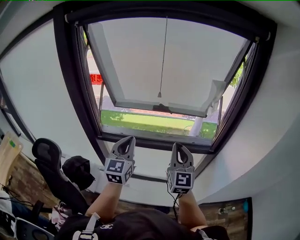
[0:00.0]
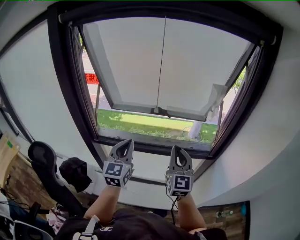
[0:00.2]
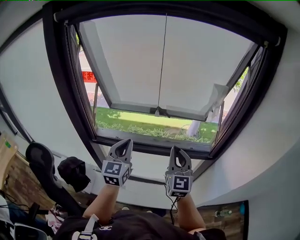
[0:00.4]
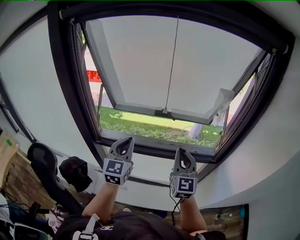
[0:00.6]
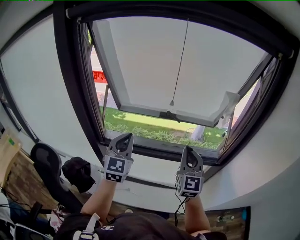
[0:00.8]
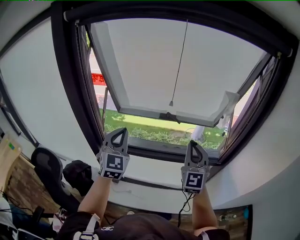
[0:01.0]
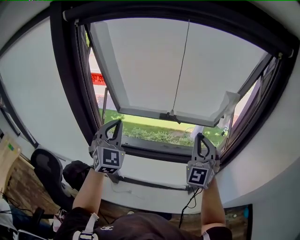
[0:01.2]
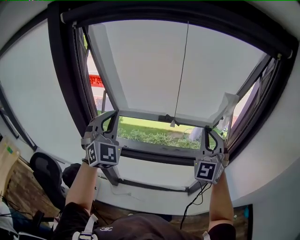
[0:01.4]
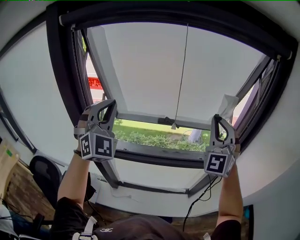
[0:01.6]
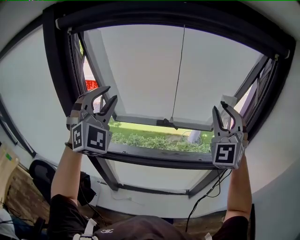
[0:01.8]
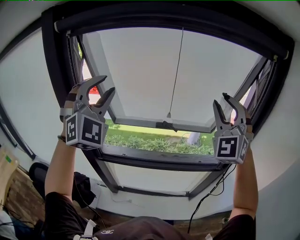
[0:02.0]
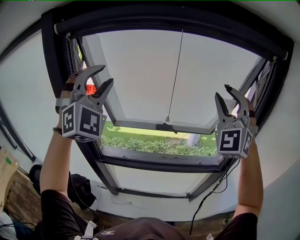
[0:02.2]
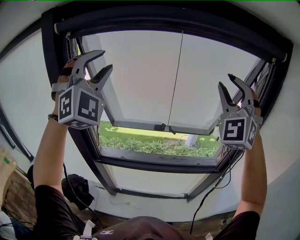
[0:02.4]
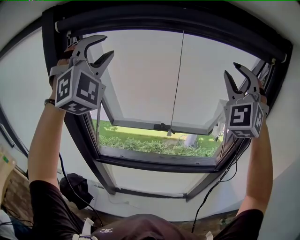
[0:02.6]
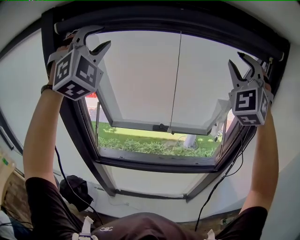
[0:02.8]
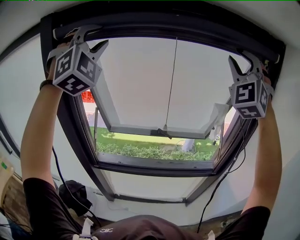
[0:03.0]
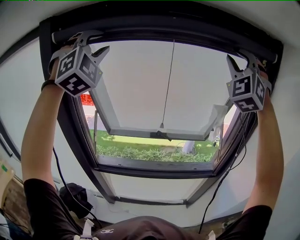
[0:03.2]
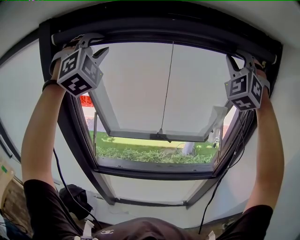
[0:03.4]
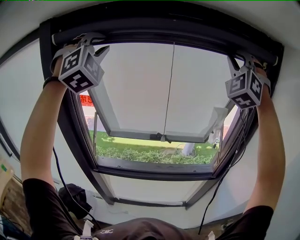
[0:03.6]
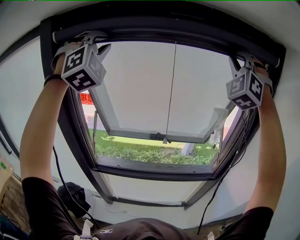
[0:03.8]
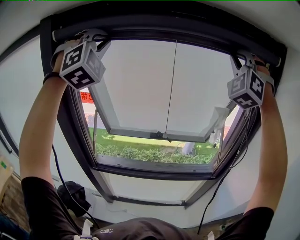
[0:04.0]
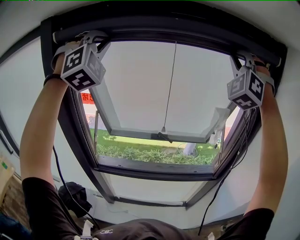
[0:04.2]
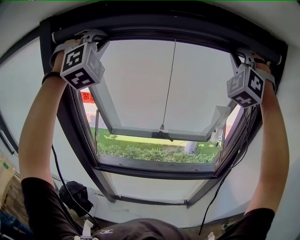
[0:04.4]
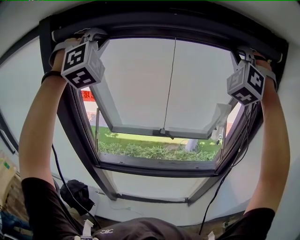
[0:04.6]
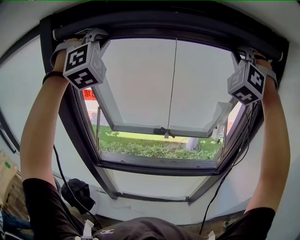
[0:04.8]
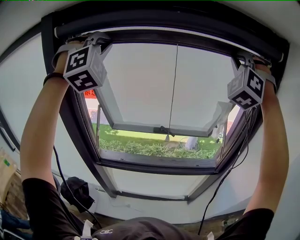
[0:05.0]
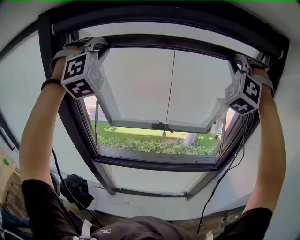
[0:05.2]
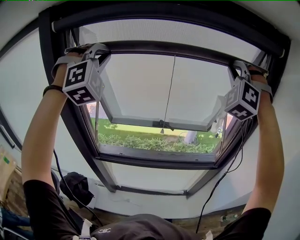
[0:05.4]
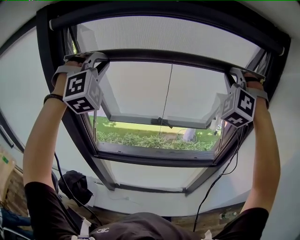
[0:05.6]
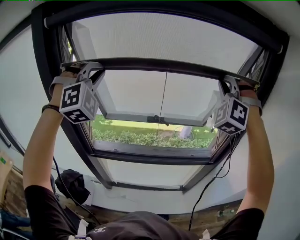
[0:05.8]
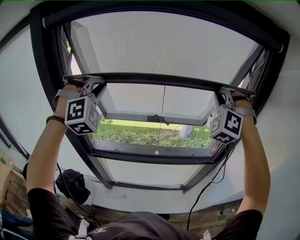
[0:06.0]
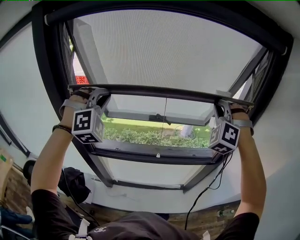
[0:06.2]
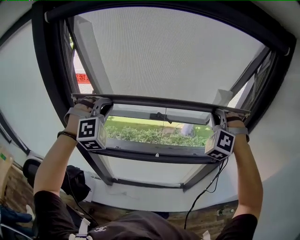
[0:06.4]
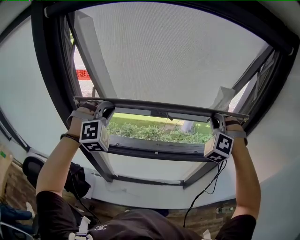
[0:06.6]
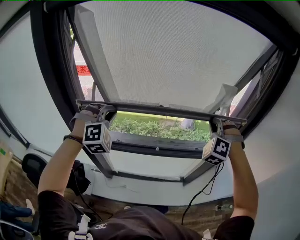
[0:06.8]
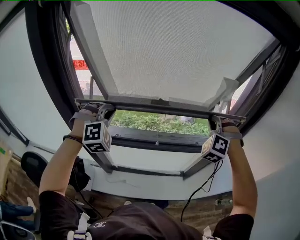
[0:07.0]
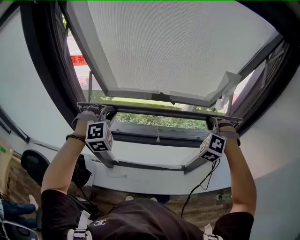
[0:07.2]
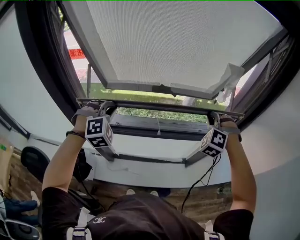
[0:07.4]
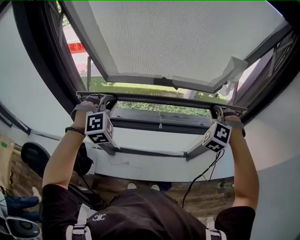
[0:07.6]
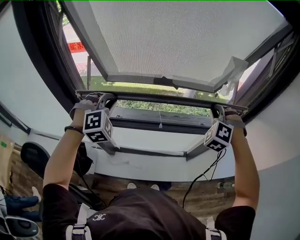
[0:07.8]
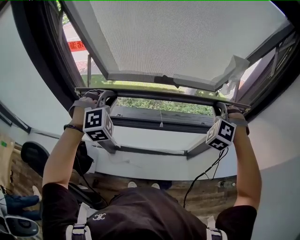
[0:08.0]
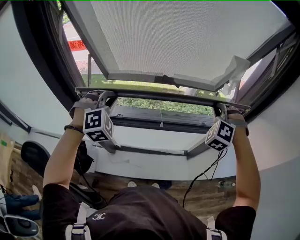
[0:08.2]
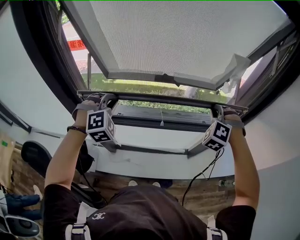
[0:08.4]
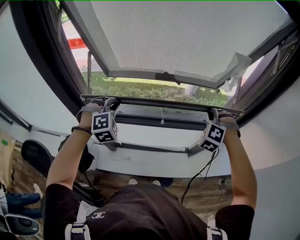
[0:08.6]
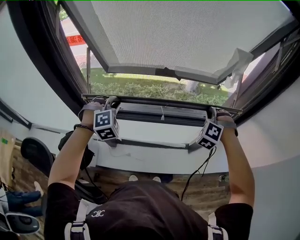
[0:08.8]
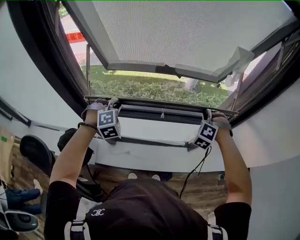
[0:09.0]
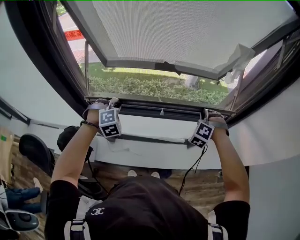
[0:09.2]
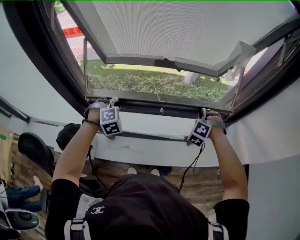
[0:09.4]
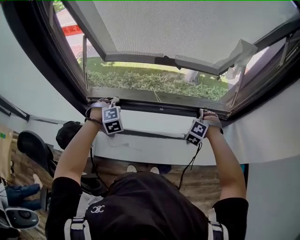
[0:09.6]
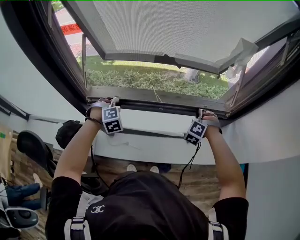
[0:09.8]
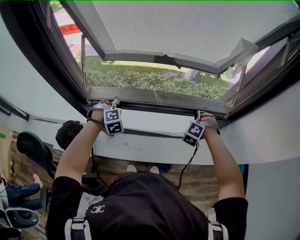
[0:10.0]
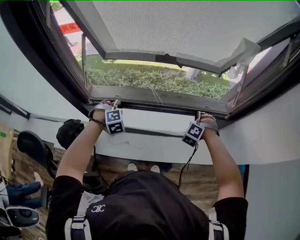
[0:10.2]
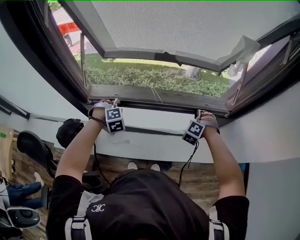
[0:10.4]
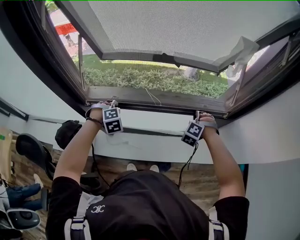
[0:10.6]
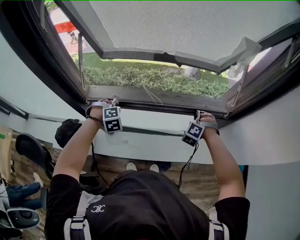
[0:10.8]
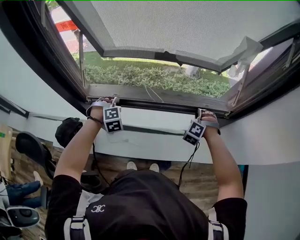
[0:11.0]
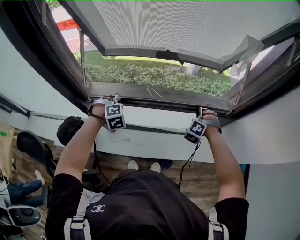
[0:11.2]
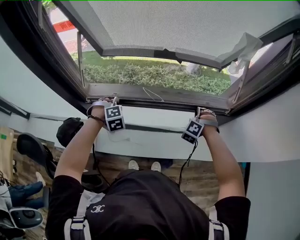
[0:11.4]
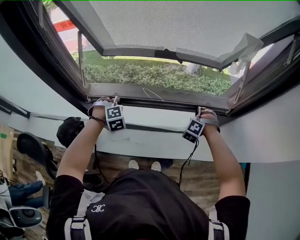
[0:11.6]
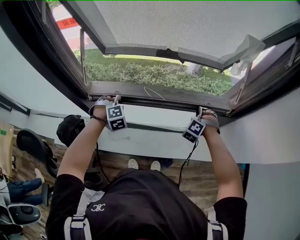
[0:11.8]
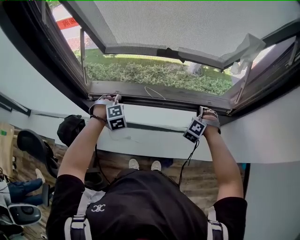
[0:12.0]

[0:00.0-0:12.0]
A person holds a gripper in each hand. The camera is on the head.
0:00.0 to 0:01.6: The right gripper heads upward and forward, covering roughly 20 cm, and twists about 50 degrees counterclockwise, seen from behind; the left gripper travels upward, forward and to the left by roughly 25 cm, and rotates around the line of its fingers by about 60 degrees, clockwise from behind.
0:01.6 to 0:03.0: Both grippers move upward, roughly 25 cm. The left gripper rotates about 20 degrees, and opens up. Meanwhile the right gripper rotates about 20 degrees, and opens up.
0:03.0 to 0:04.4: The right gripper closes, while the left gripper closes.
0:04.4 to 0:06.0: The grippers both shift downward by roughly 20 cm. The right gripper changes its angle by roughly 20 degrees.
0:06.0 to 0:07.6: Both grippers move downward, about 25 cm. The left gripper changes its angle by about 20 degrees, while the right gripper changes its angle by roughly 30 degrees.
0:07.6 to 0:09.0: The grippers both shift downward by roughly 10 cm.
0:09.0 to 0:10.4: The grippers both shift downward by some 10 cm.
0:10.4 to 0:12.0: The grippers make only small movements.

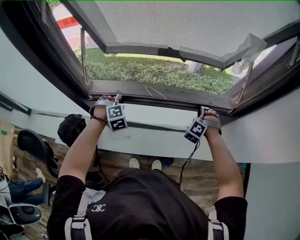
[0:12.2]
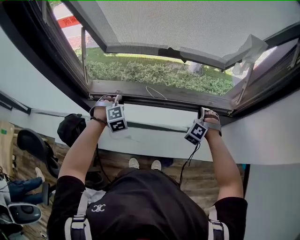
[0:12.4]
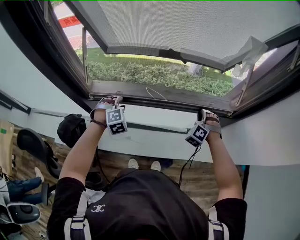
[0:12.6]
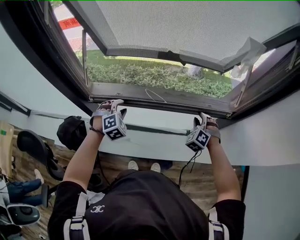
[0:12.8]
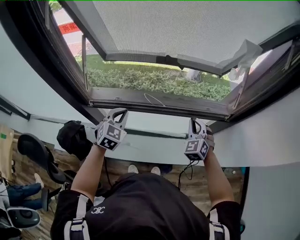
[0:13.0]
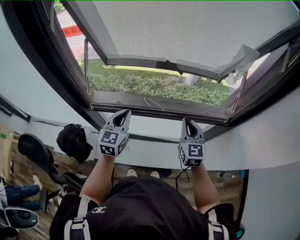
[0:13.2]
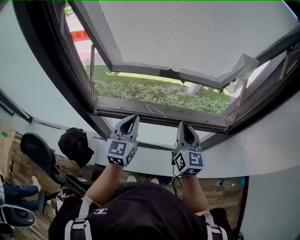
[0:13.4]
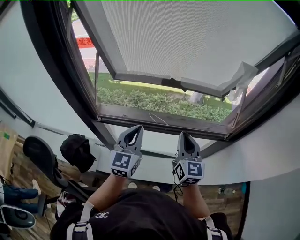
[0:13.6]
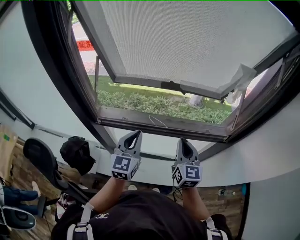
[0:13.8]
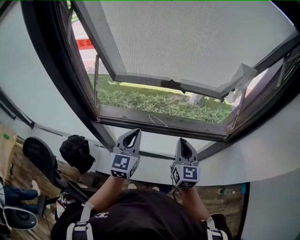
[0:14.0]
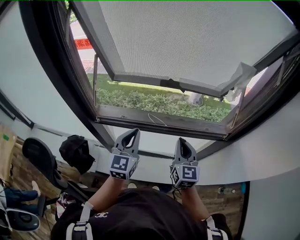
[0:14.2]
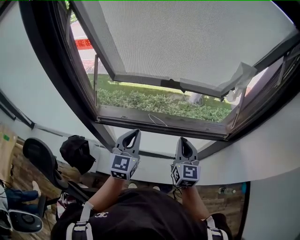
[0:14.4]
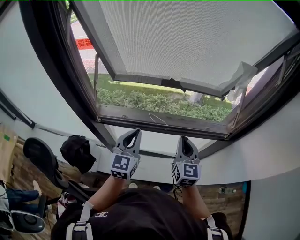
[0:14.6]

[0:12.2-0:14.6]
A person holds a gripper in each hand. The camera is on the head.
0:12.2 to 0:13.4: The right gripper goes roughly 25 cm upward, to the left and backward, rolls clockwise, seen from behind, by about 90 degrees, and opens, then closes again. Meanwhile the left gripper moves upward and to the right, approximately 20 cm, angles its fingers upward, by approximately 50 degrees, and opens, then closes again.
0:13.4 to 0:14.6: The grippers move only a little.

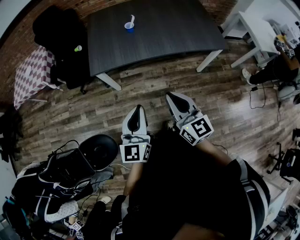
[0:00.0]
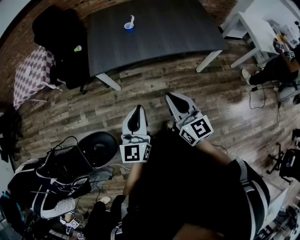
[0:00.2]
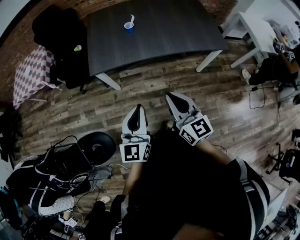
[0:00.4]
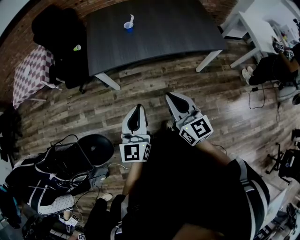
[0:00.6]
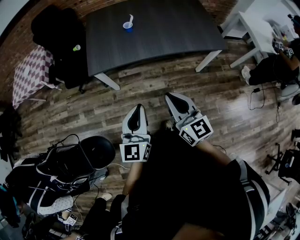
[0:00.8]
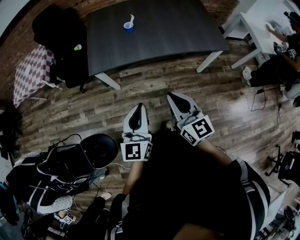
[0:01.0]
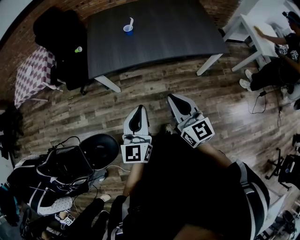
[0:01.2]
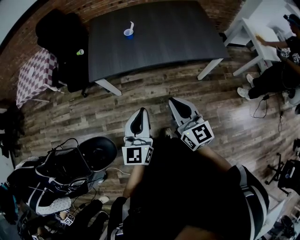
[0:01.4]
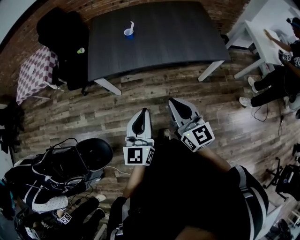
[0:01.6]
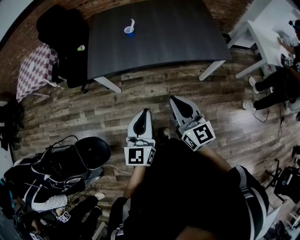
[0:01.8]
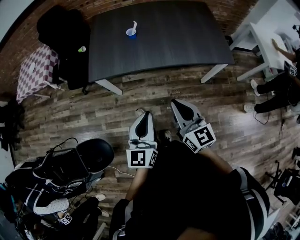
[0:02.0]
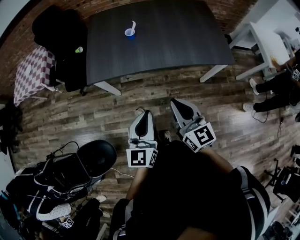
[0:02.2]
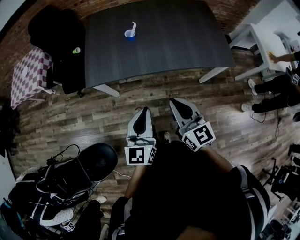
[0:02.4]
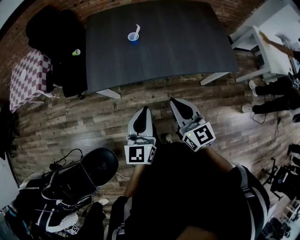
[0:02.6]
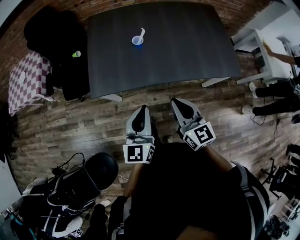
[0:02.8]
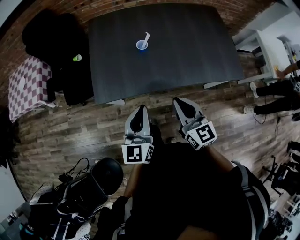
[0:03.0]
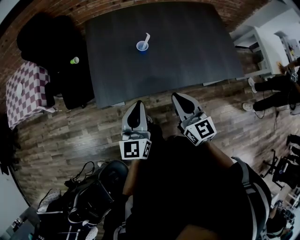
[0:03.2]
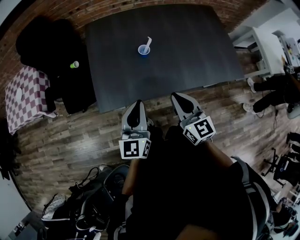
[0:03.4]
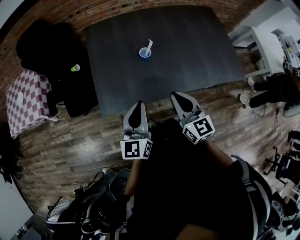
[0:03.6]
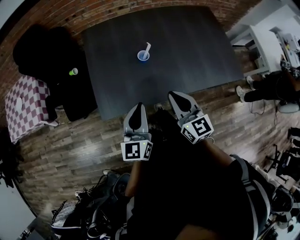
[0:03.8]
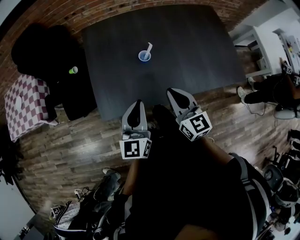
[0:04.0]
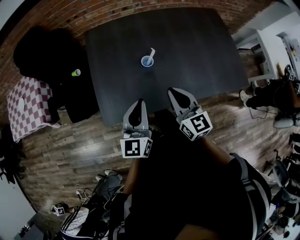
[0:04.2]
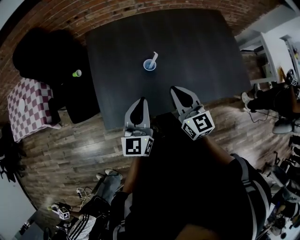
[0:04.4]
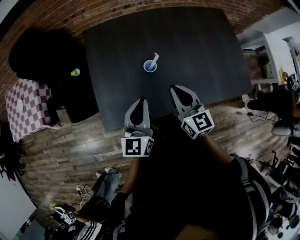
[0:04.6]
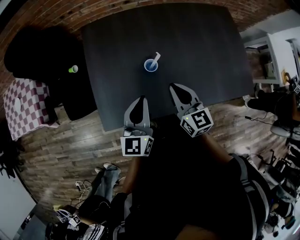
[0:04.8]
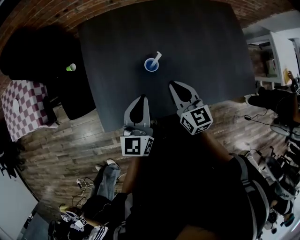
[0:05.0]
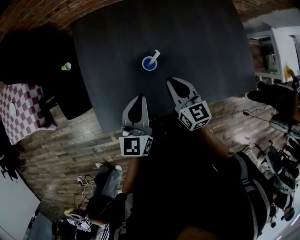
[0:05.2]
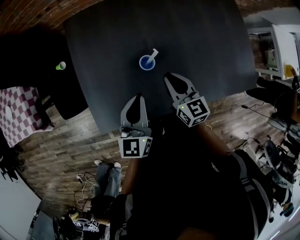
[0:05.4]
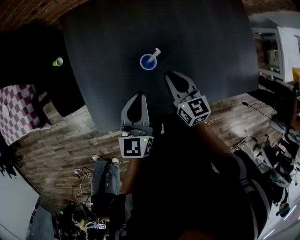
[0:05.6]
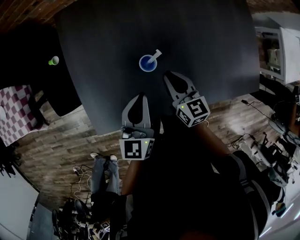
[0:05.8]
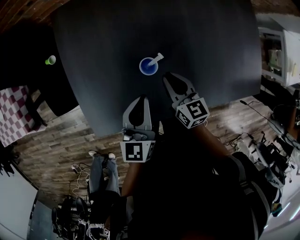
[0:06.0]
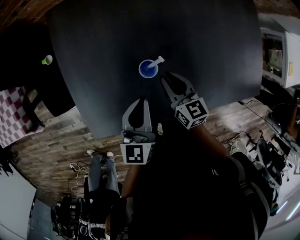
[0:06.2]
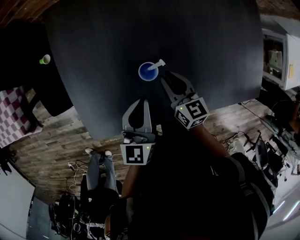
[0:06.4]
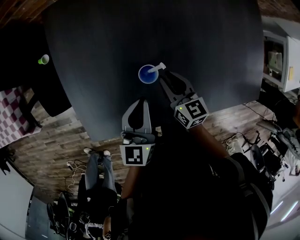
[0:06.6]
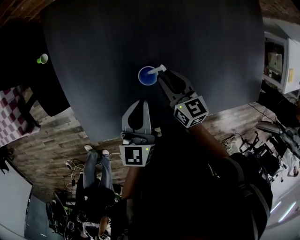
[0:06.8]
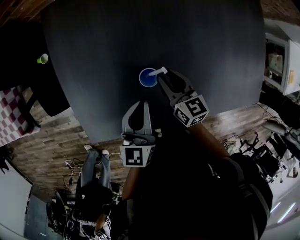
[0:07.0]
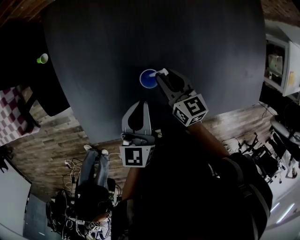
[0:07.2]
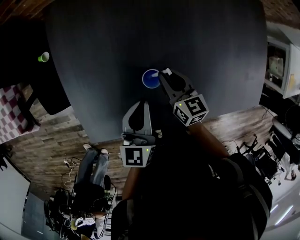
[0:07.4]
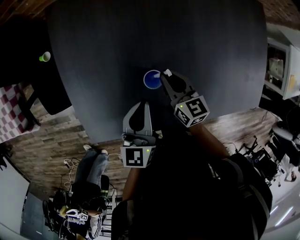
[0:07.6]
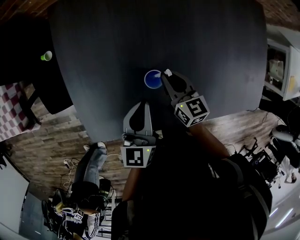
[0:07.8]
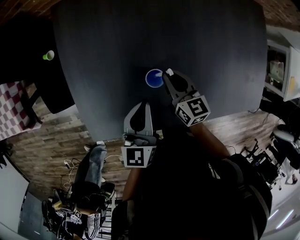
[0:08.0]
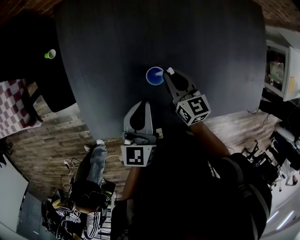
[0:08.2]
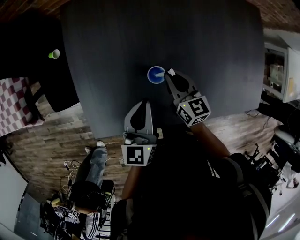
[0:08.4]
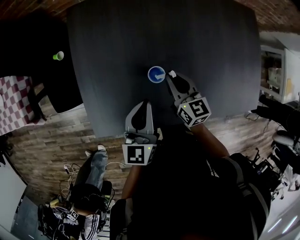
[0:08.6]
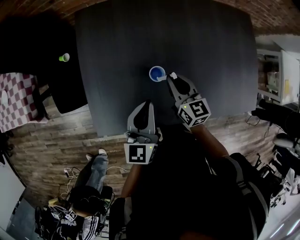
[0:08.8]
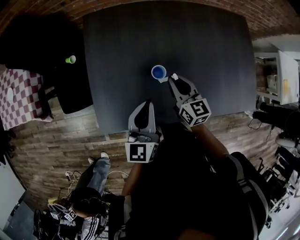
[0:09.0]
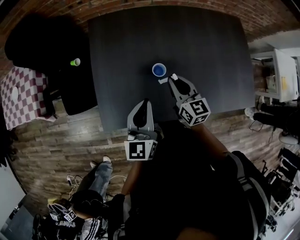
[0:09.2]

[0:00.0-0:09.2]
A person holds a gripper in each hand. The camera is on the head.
0:00.0 to 0:01.6: The two grippers go about 10 cm to the right.
0:01.6 to 0:03.0: The two grippers go about 25 cm forward.
0:03.0 to 0:04.6: Both grippers travel together forward, about 25 cm.
0:04.6 to 0:06.2: The two grippers go about 20 cm downward and forward. The right gripper rotates roughly 20 degrees.
0:06.2 to 0:07.6: The right gripper moves roughly 5 cm.
0:07.6 to 0:09.2: The right gripper is displaced upward and backward by some 15 cm; the left gripper moves upward, backward and to the left, about 20 cm.
